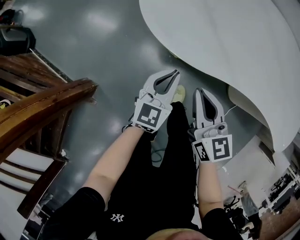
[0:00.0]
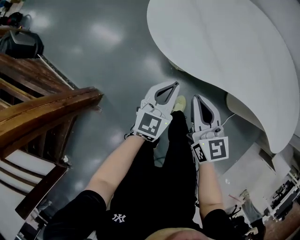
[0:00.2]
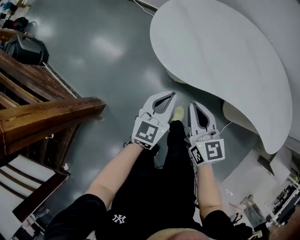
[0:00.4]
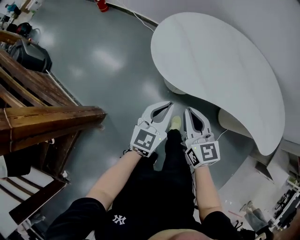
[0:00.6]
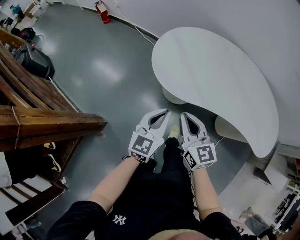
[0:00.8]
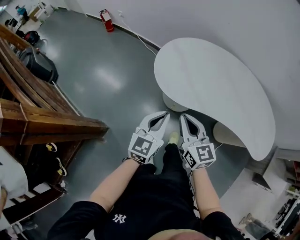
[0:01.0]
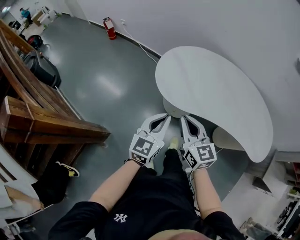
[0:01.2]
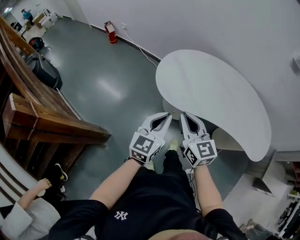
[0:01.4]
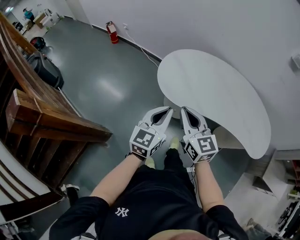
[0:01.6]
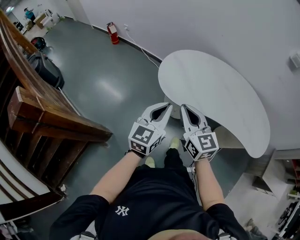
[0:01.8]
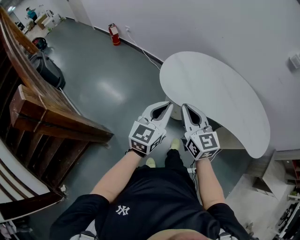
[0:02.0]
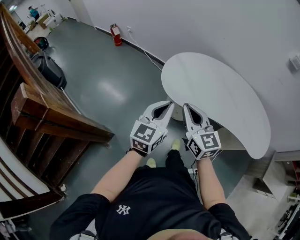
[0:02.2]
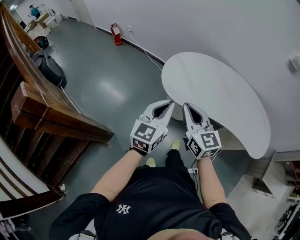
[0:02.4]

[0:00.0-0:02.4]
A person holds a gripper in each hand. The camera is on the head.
0:00.0 to 0:01.2: Both grippers move upward, roughly 30 cm.
0:01.2 to 0:02.4: Both grippers move upward, roughly 10 cm.

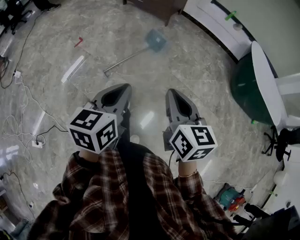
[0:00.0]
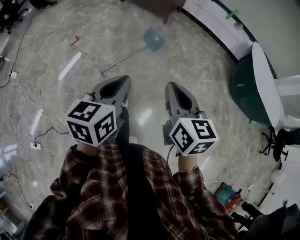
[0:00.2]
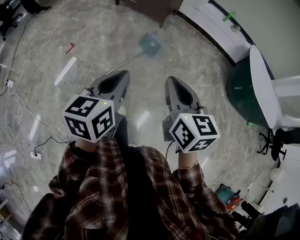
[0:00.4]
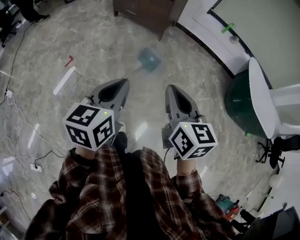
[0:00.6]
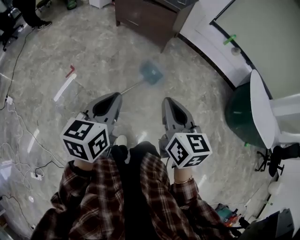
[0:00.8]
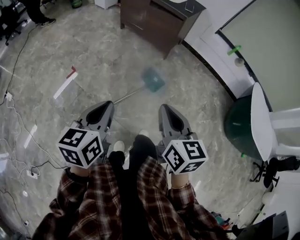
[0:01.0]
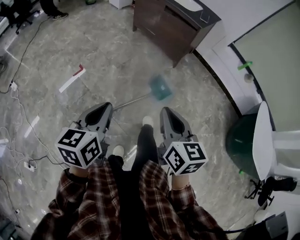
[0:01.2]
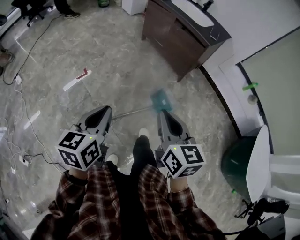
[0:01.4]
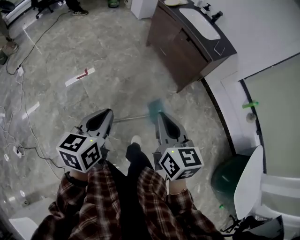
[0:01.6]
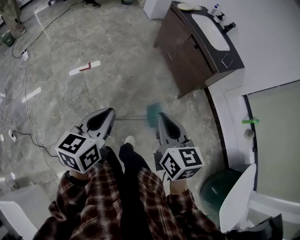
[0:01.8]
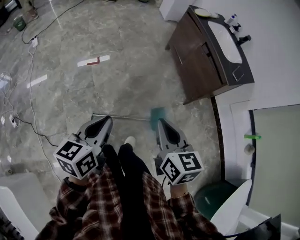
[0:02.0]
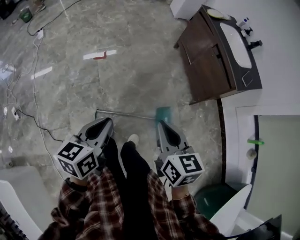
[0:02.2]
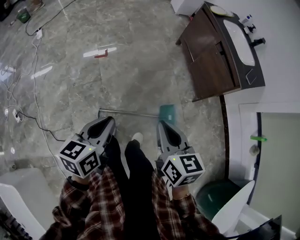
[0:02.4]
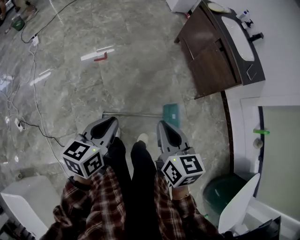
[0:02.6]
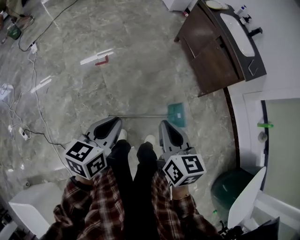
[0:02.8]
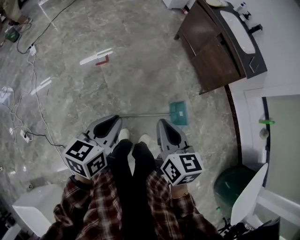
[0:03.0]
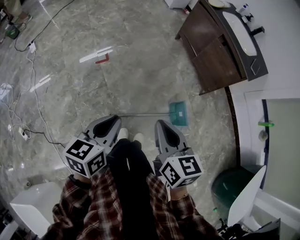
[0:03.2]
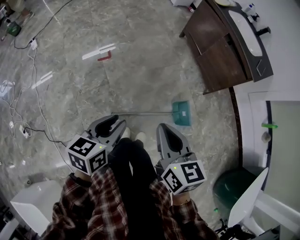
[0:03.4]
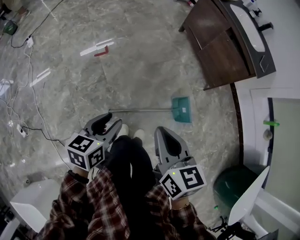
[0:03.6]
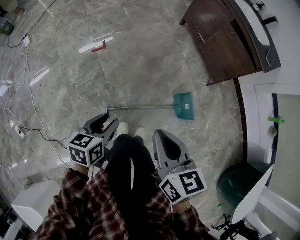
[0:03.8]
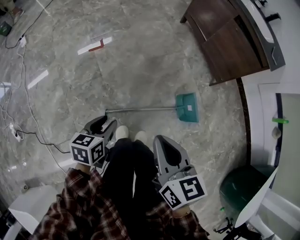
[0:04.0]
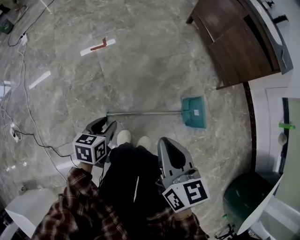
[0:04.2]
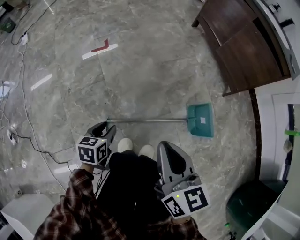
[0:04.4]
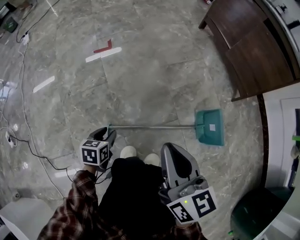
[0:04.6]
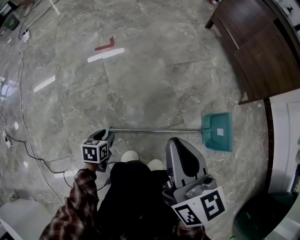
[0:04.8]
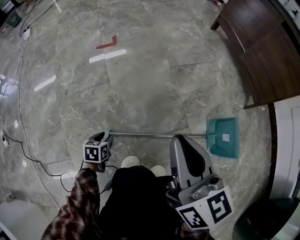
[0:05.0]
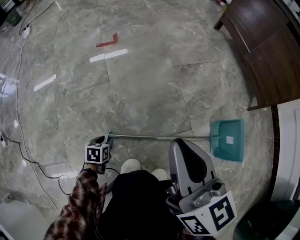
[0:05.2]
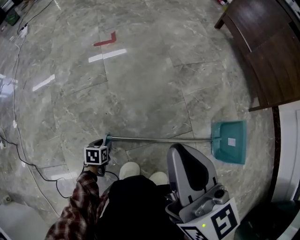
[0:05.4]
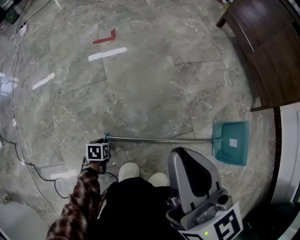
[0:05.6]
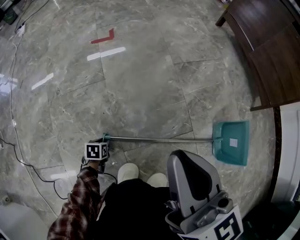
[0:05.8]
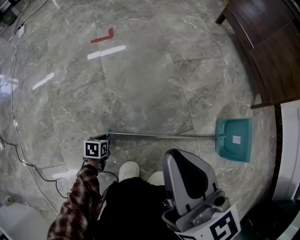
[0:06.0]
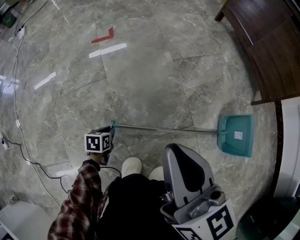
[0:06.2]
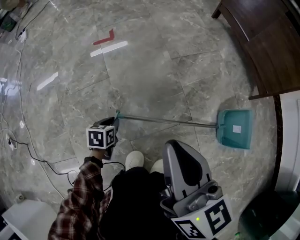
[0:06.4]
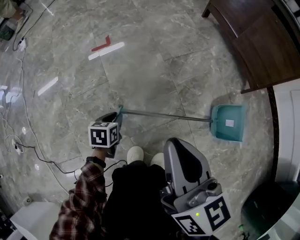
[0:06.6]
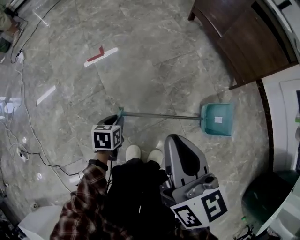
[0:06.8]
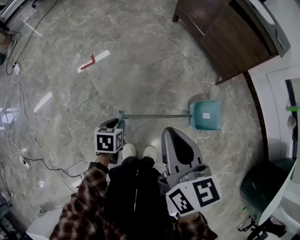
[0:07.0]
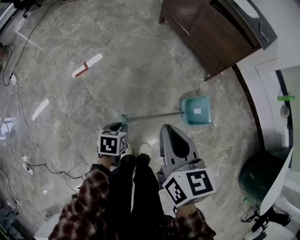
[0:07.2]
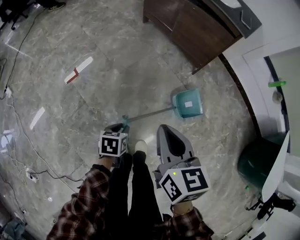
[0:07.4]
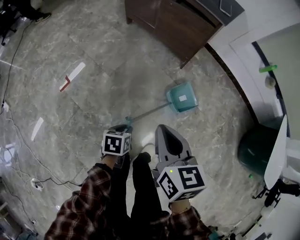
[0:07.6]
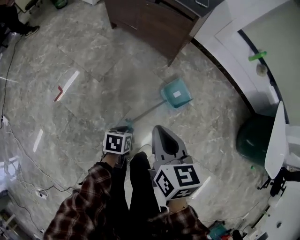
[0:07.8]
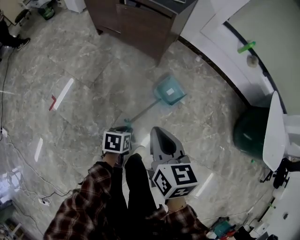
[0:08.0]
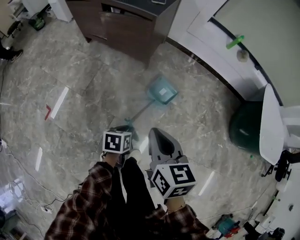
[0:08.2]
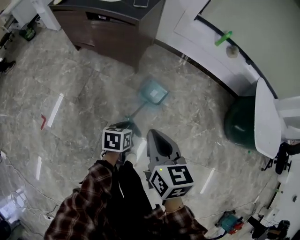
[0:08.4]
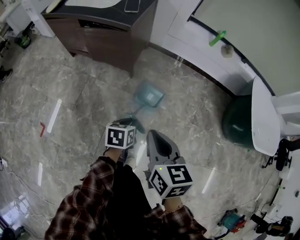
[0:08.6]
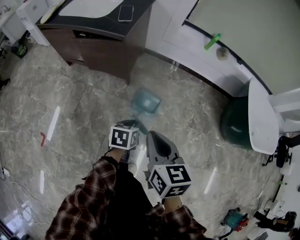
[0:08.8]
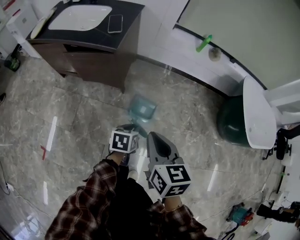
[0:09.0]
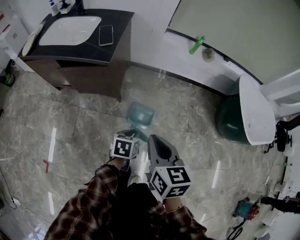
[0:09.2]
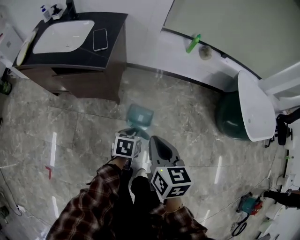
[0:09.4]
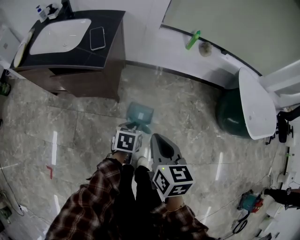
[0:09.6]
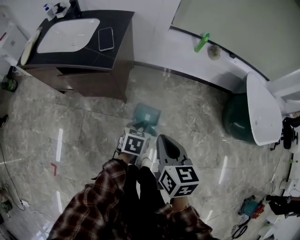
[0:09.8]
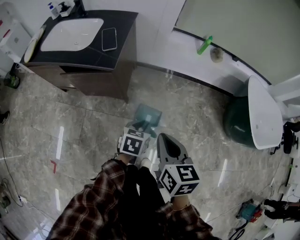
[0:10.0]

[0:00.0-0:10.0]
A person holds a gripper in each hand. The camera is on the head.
0:00.0 to 0:01.4: The two grippers travel together, forward, approximately 50 cm. The left gripper changes its angle by roughly 20 degrees.
0:01.4 to 0:02.8: The right gripper goes about 15 cm forward, to the left and downward, while the left gripper moves forward, downward and to the left, about 10 cm.
0:02.8 to 0:04.2: The left gripper is displaced downward by approximately 40 cm, changes its angle by roughly 20 degrees, and opens. Meanwhile the right gripper goes some 20 cm downward.
0:04.2 to 0:05.8: The right gripper heads downward and forward, covering about 20 cm; the left gripper goes about 50 cm downward, and turns by roughly 30 degrees.
0:05.8 to 0:07.2: The right gripper moves upward and to the right, some 30 cm, and swivels about 30 degrees, while the left gripper moves upward and to the right, about 50 cm, and swivels roughly 30 degrees.
0:07.2 to 0:08.6: The left gripper ends up some 50 cm from where it was, and changes its angle by approximately 40 degrees. The right gripper changes place by roughly 40 cm, and turns by some 30 degrees.
0:08.6 to 0:10.0: The two grippers go about 20 cm forward. The left gripper rotates about 20 degrees.

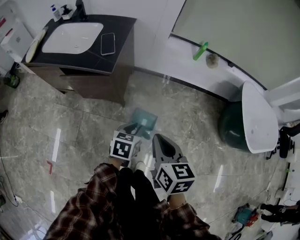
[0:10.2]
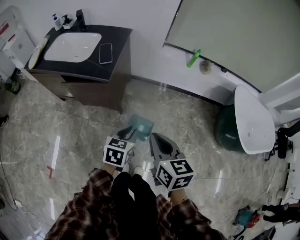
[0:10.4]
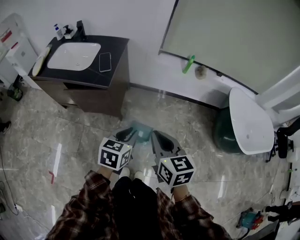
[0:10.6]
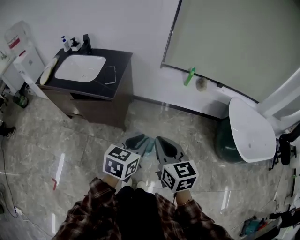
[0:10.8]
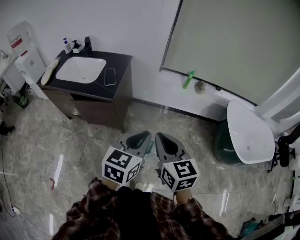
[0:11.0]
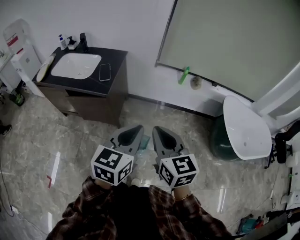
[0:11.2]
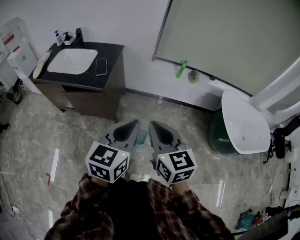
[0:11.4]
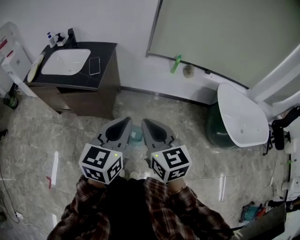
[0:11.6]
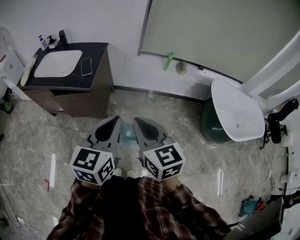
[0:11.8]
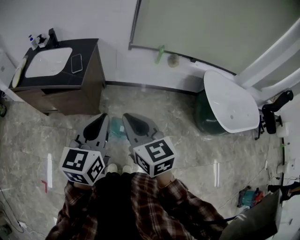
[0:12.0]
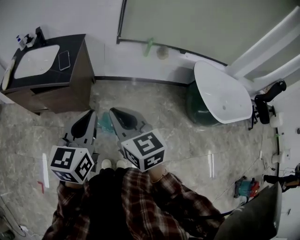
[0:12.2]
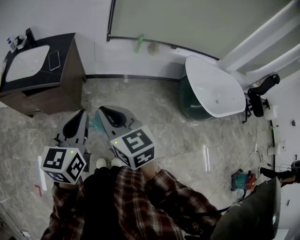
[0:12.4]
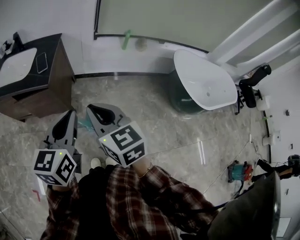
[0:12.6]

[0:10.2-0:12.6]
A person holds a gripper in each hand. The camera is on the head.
0:10.2 to 0:11.4: The right gripper moves upward, roughly 15 cm, and rotates roughly 20 degrees, while the left gripper moves upward, approximately 30 cm, and points its fingers some 30 degrees further upward.
0:11.4 to 0:12.6: The grippers move only a little.

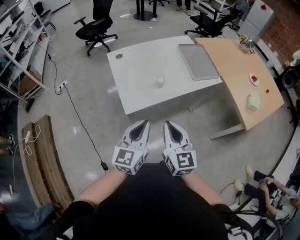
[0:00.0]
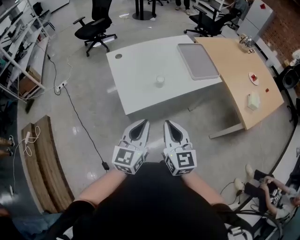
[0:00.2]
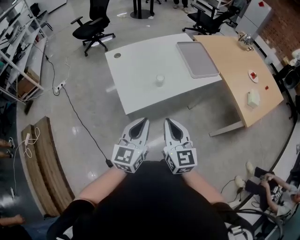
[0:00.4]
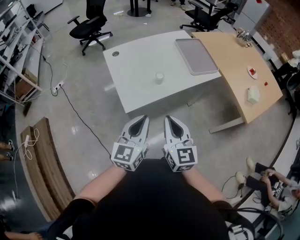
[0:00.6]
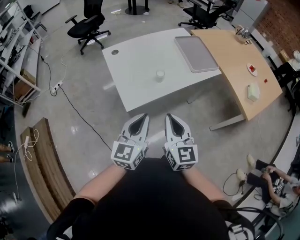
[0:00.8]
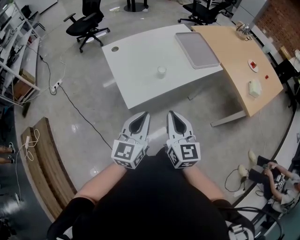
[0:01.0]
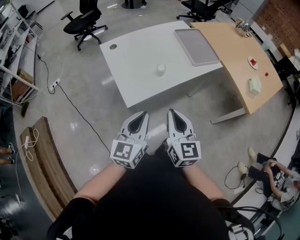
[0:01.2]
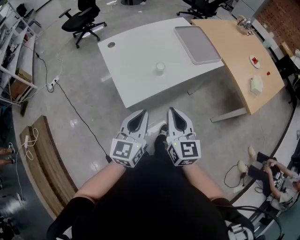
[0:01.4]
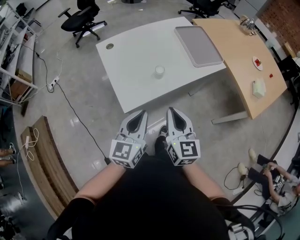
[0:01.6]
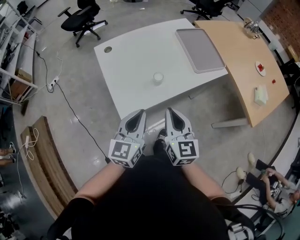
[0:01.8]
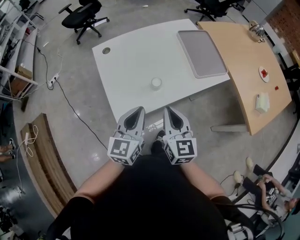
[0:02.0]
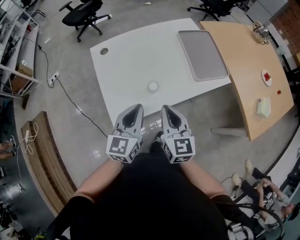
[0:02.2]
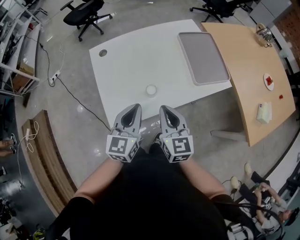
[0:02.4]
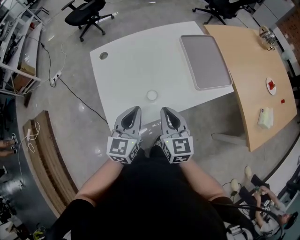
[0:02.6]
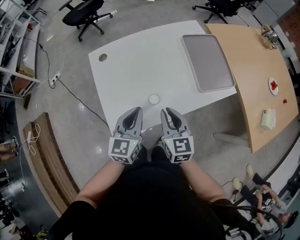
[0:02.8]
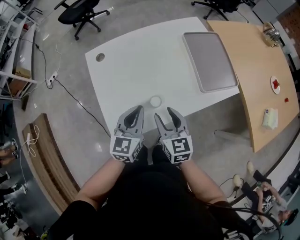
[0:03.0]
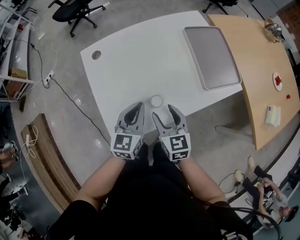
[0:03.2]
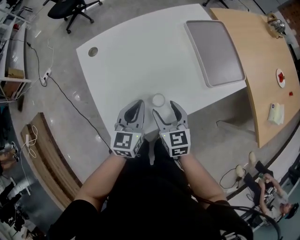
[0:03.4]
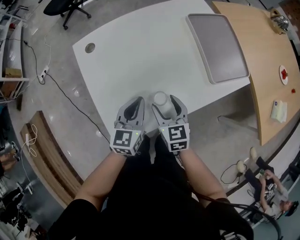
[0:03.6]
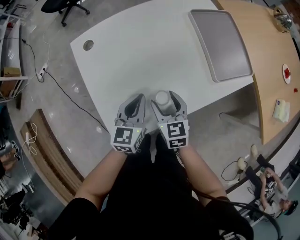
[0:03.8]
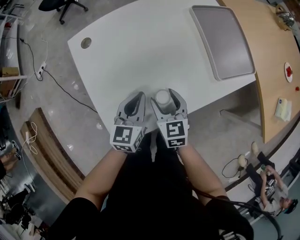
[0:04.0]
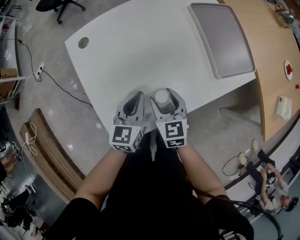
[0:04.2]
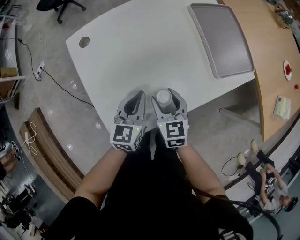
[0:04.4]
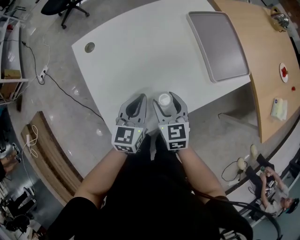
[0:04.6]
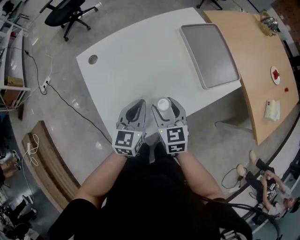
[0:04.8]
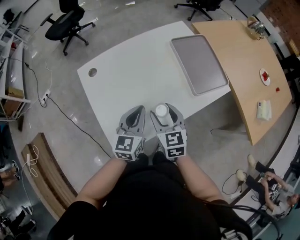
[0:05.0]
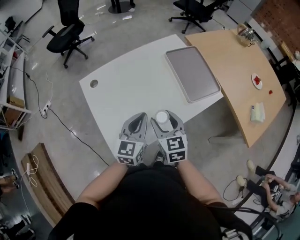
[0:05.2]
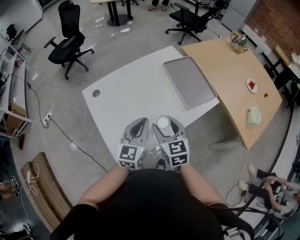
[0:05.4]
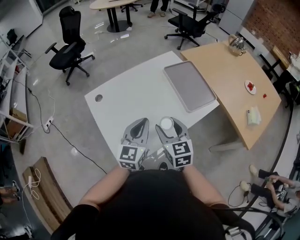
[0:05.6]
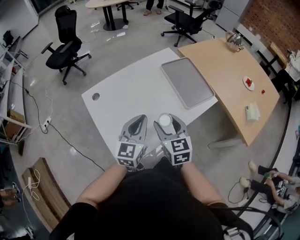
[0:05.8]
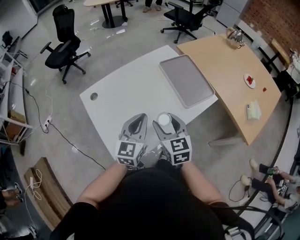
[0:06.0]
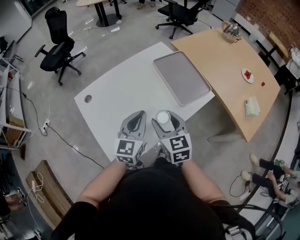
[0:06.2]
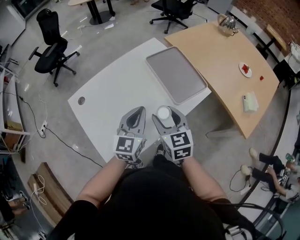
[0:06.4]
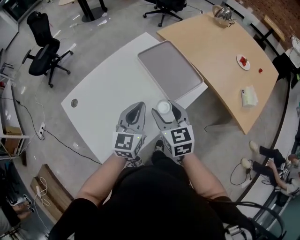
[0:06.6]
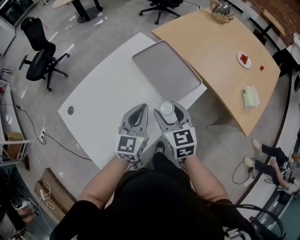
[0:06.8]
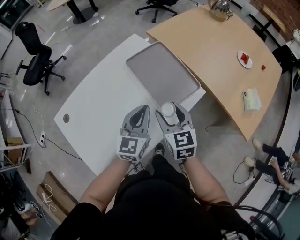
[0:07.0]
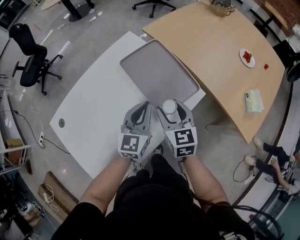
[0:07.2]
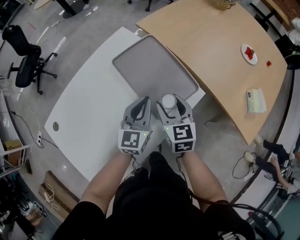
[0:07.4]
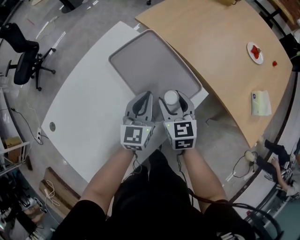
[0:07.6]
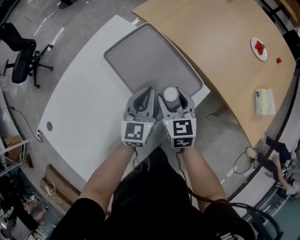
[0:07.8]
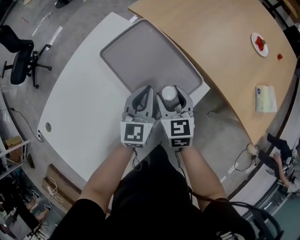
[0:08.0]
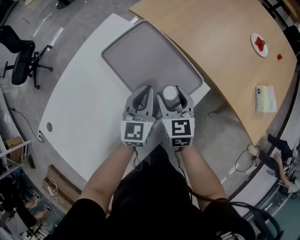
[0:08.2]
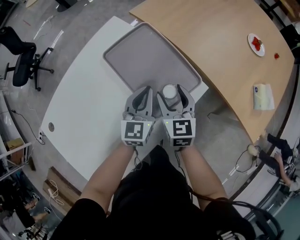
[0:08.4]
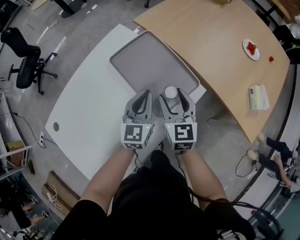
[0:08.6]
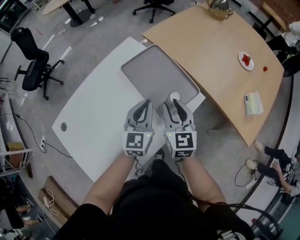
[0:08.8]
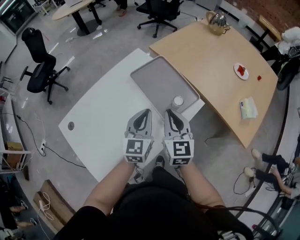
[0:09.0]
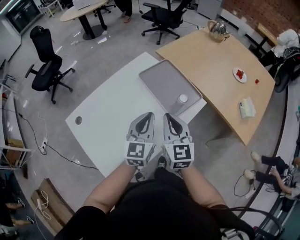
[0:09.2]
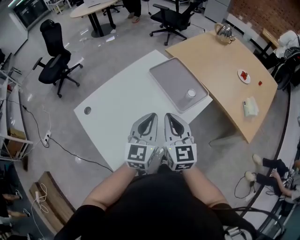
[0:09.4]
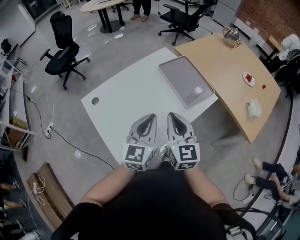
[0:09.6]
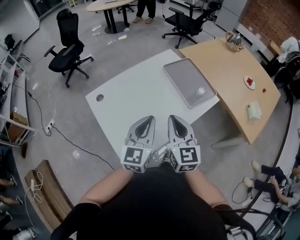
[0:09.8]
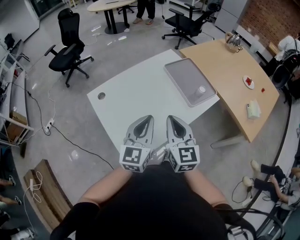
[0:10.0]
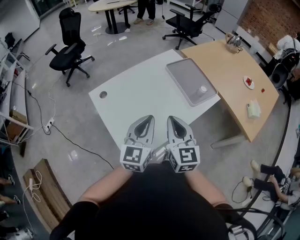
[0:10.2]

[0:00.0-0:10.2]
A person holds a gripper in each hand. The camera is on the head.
0:00.0 to 0:01.4: The left gripper changes place by approximately 5 cm, while the right gripper shifts by approximately 5 cm.
0:01.4 to 0:03.0: The left gripper heads forward, covering about 30 cm, while the right gripper moves forward and downward, roughly 30 cm, and opens.
0:03.0 to 0:04.4: Both grippers travel together downward and forward, roughly 15 cm. The right gripper opens its fingers.
0:04.4 to 0:05.8: The grippers both shift upward by approximately 20 cm. The left gripper swivels some 20 degrees.
0:05.8 to 0:07.2: The grippers both shift forward, to the right and downward by roughly 35 cm.
0:07.2 to 0:08.8: The left gripper travels downward and back again, some 10 cm each way; the right gripper moves some 10 cm downward and comes back, and closes up.
0:08.8 to 0:10.2: Both grippers move backward, to the left and upward, about 40 cm. The right gripper closes up.
